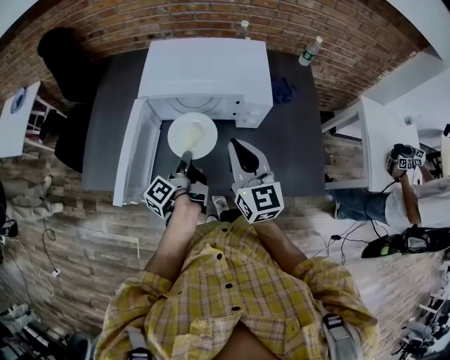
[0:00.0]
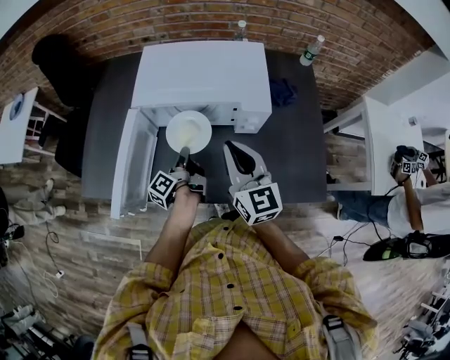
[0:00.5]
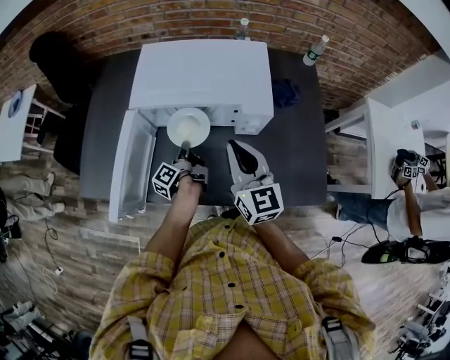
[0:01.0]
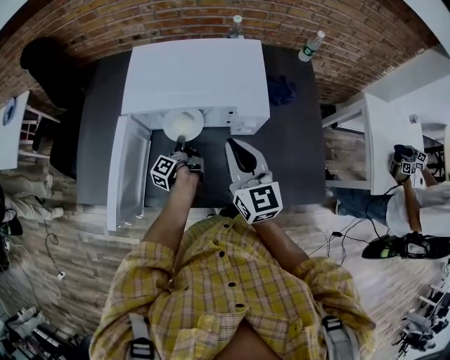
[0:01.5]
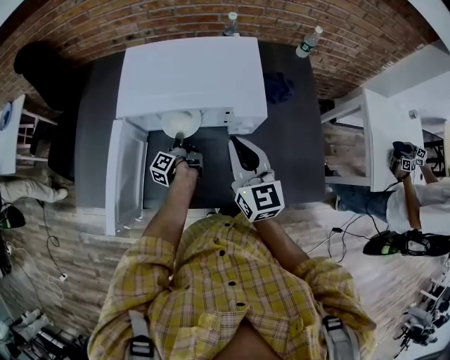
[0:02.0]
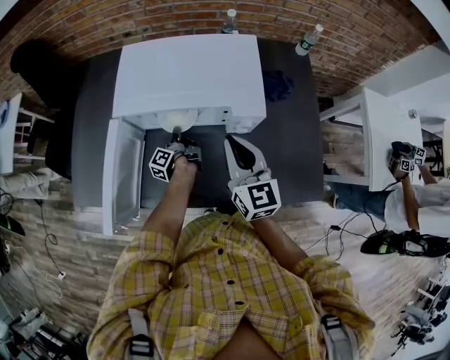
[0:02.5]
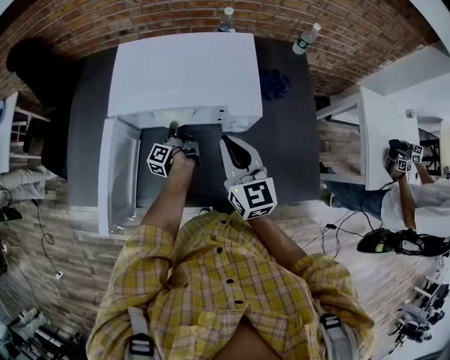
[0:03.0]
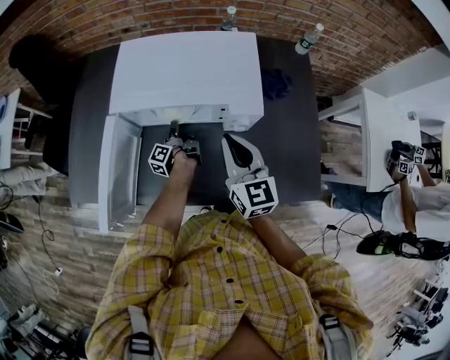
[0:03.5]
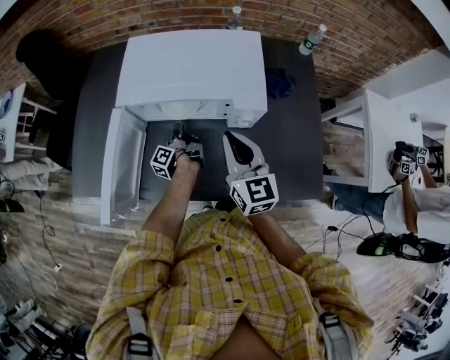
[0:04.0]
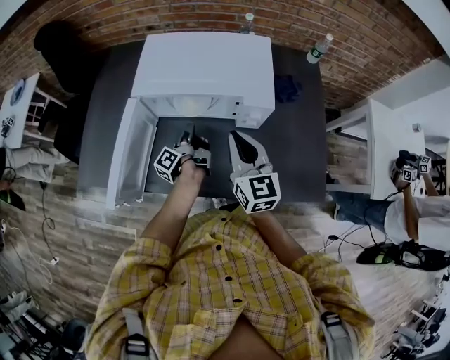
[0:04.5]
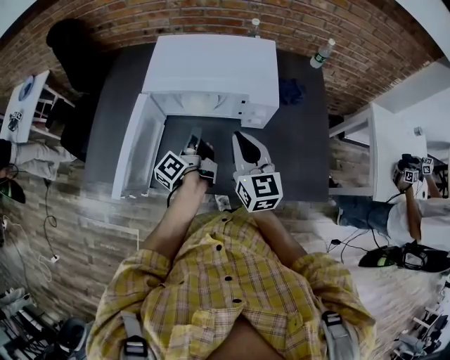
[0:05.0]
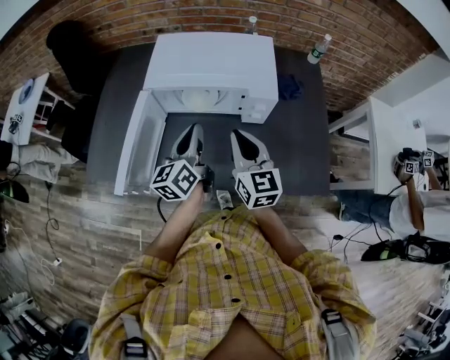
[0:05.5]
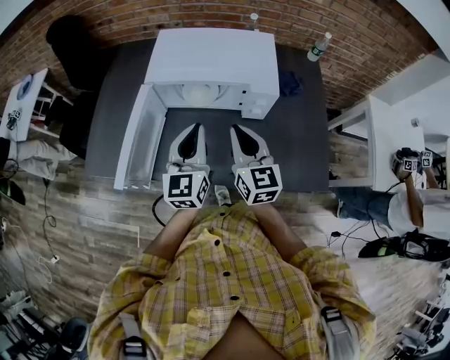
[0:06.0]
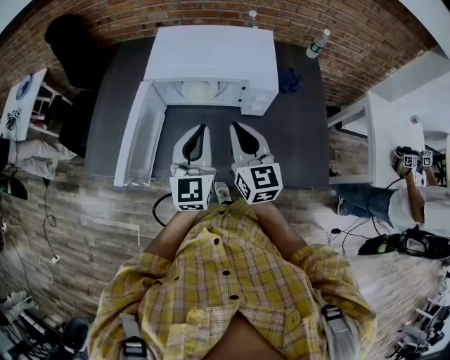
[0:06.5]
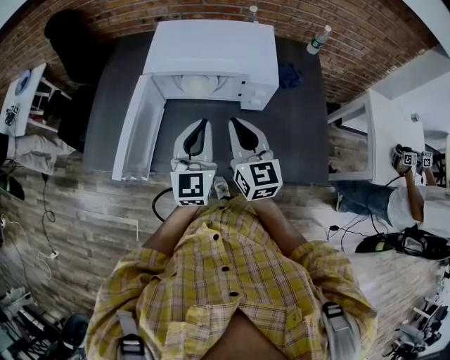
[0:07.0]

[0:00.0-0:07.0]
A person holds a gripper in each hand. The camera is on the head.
0:00.0 to 0:02.0: The right gripper moves some 10 cm.
0:03.5 to 0:05.0: The right gripper moves some 5 cm.

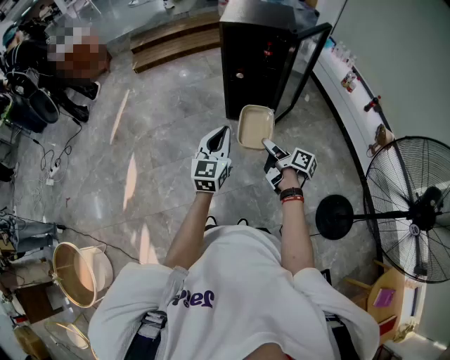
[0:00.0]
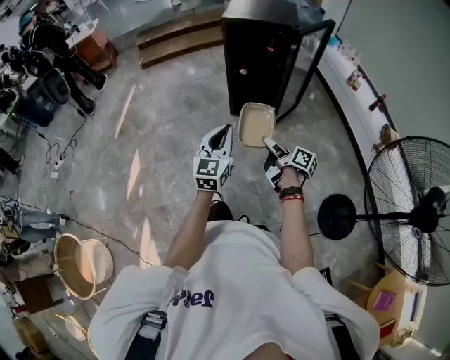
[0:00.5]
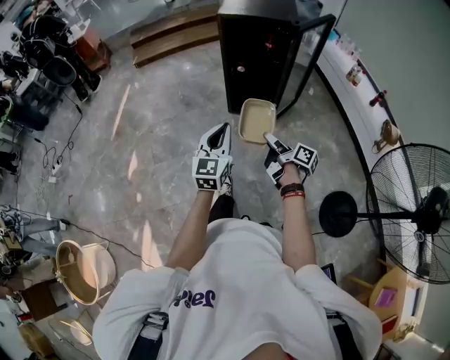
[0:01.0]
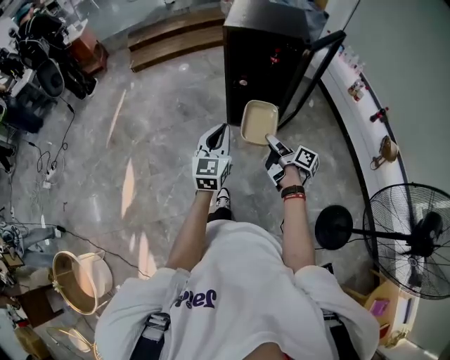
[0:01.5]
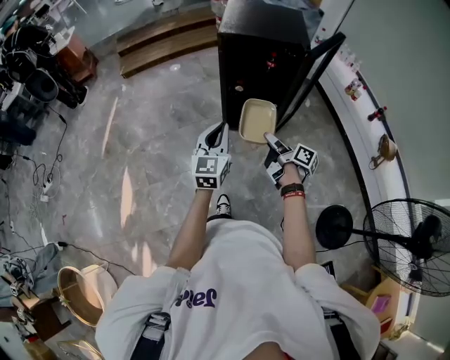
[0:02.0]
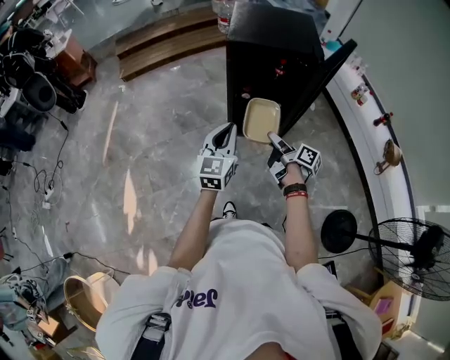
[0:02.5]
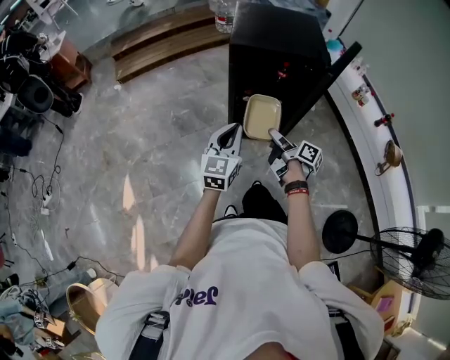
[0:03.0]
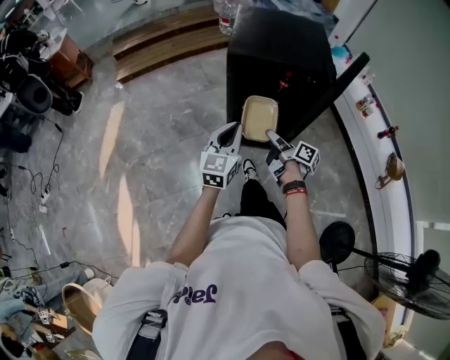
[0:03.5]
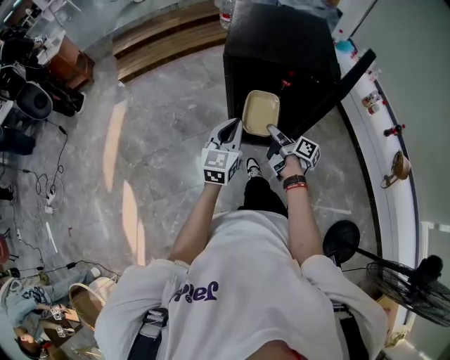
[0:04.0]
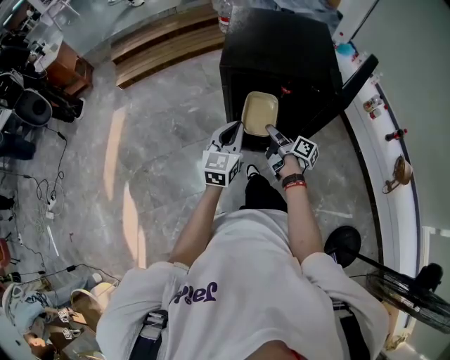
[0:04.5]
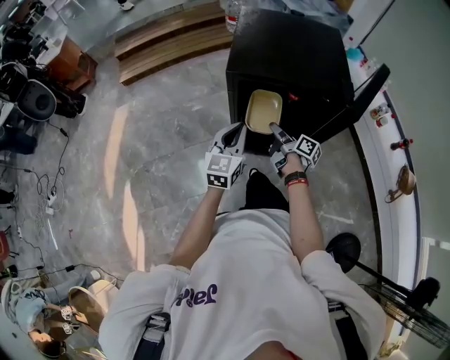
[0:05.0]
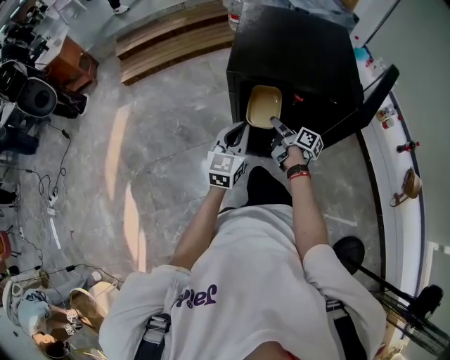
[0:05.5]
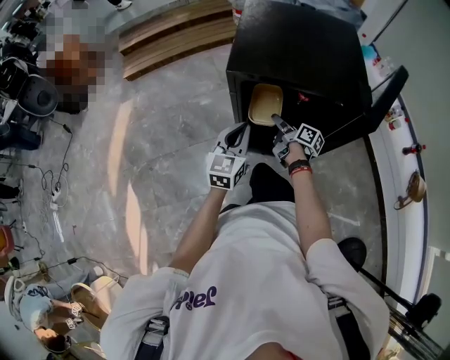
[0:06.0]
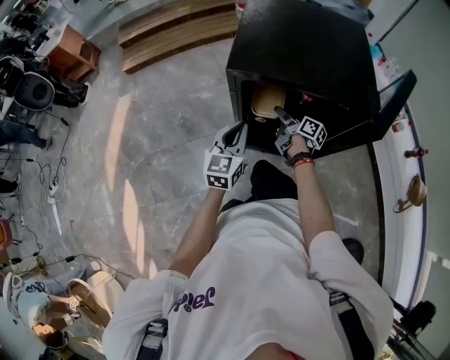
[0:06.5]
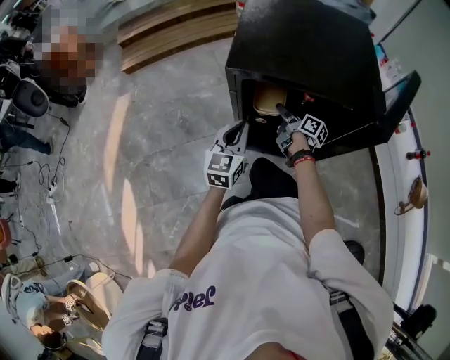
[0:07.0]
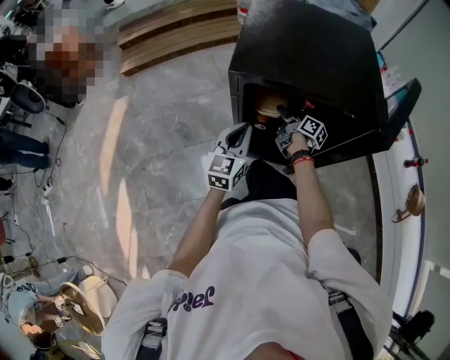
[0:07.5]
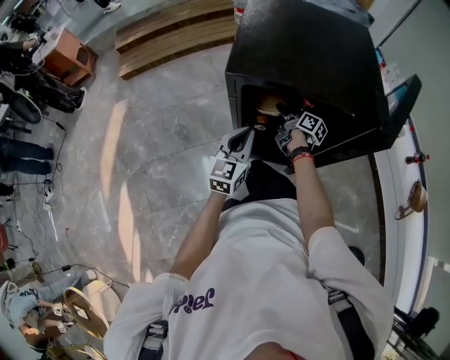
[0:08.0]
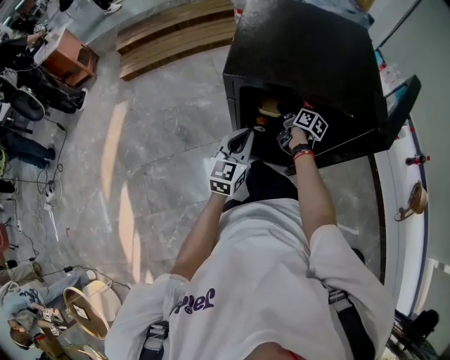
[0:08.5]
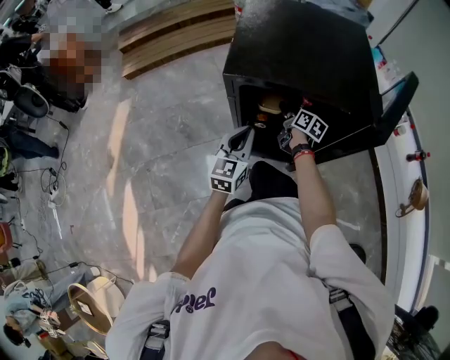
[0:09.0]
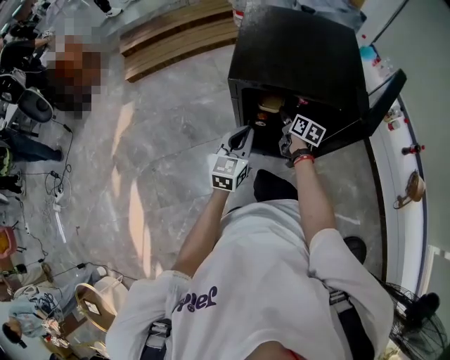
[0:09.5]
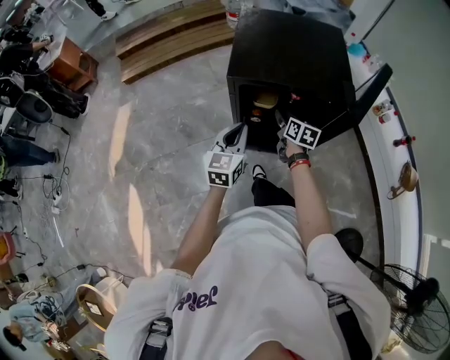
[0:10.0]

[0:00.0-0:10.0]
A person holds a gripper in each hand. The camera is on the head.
0:00.0 to 0:02.0: The two grippers go some 25 cm forward.
0:02.0 to 0:04.0: Both grippers travel together forward, approximately 30 cm.
0:04.0 to 0:06.0: The two grippers go roughly 20 cm forward and downward.
0:06.0 to 0:08.0: The left gripper moves downward, some 5 cm, while the right gripper shifts approximately 10 cm forward and downward.
0:08.0 to 0:10.0: Both grippers move upward and backward, approximately 20 cm. The right gripper turns by about 40 degrees.

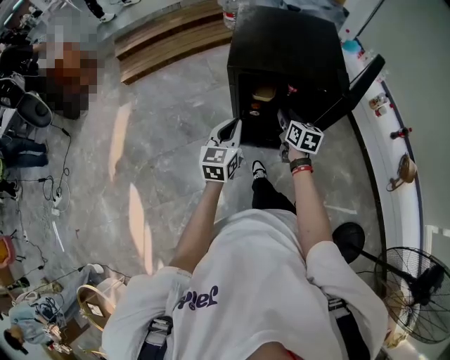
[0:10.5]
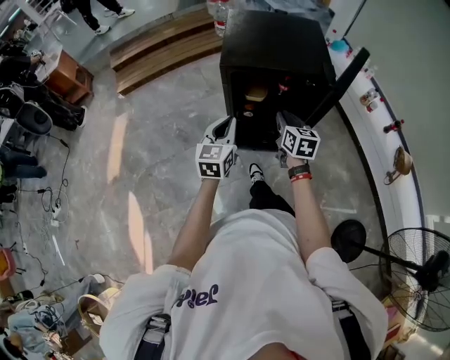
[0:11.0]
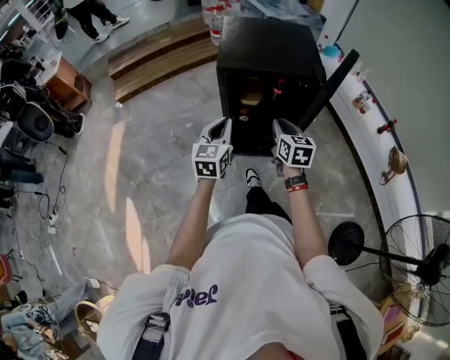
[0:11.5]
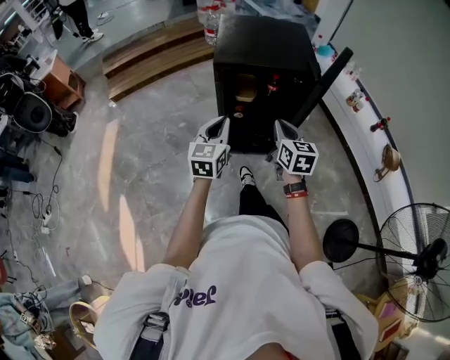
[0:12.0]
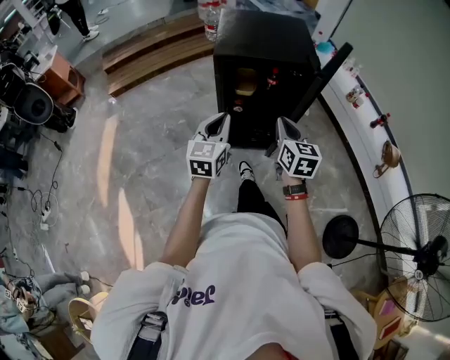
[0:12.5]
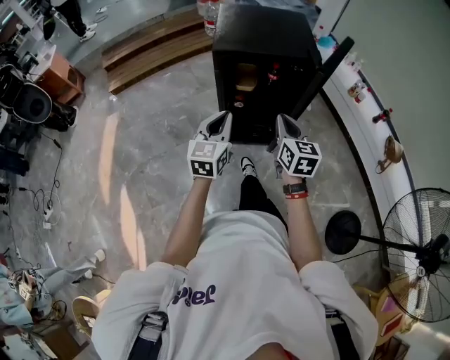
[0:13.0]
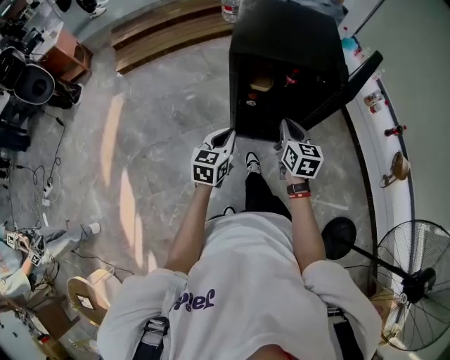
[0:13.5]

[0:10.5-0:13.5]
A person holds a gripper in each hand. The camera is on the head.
0:10.5 to 0:12.0: The left gripper is displaced backward by some 10 cm, while the right gripper heads backward and upward, covering approximately 20 cm, and closes up.
0:12.0 to 0:13.5: The left gripper heads downward, covering some 10 cm. The right gripper moves forward, approximately 5 cm.

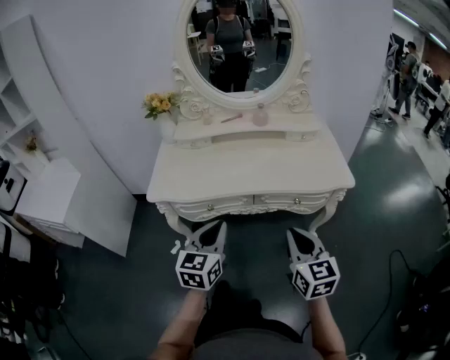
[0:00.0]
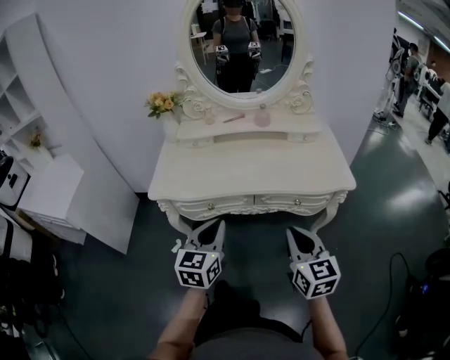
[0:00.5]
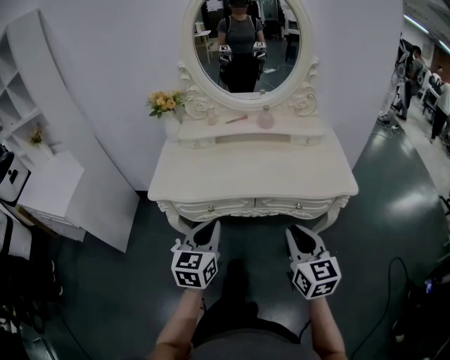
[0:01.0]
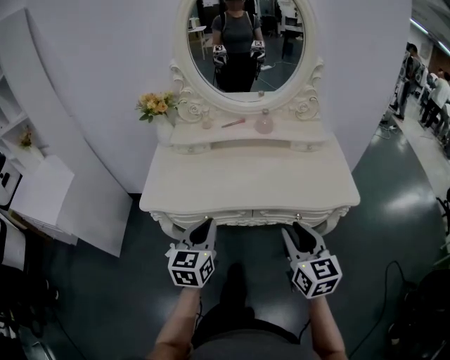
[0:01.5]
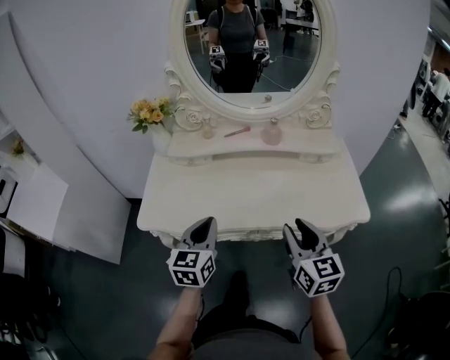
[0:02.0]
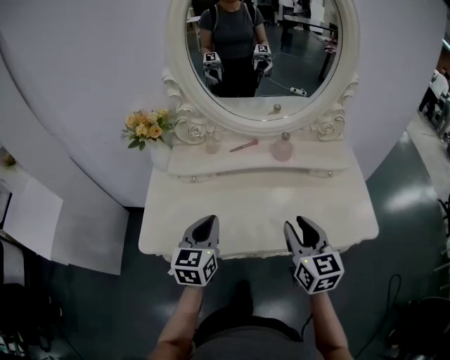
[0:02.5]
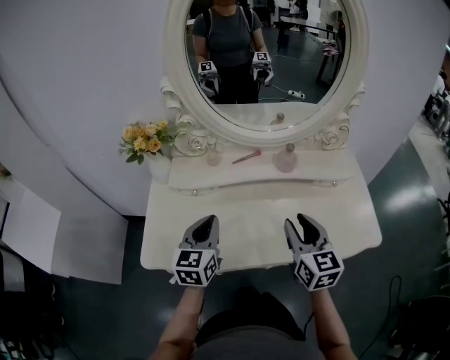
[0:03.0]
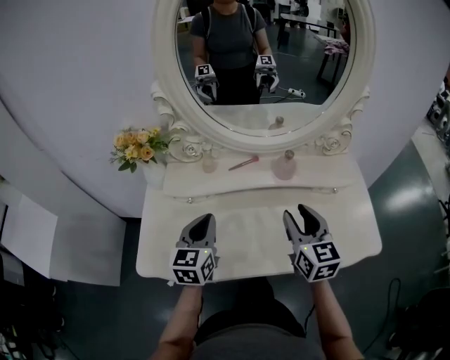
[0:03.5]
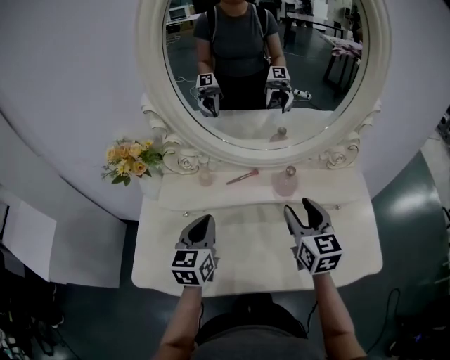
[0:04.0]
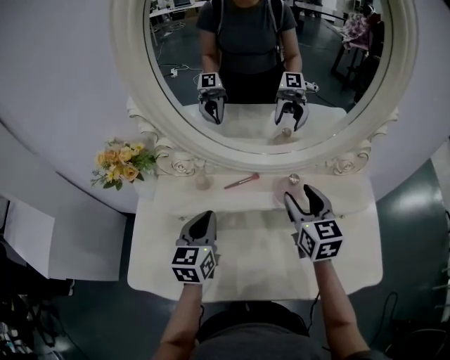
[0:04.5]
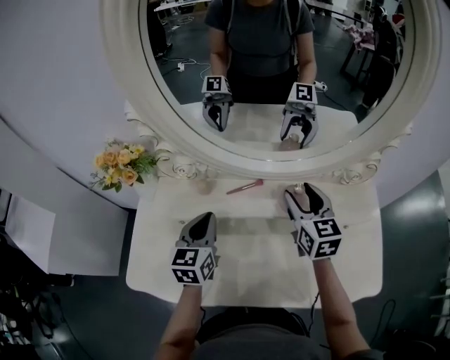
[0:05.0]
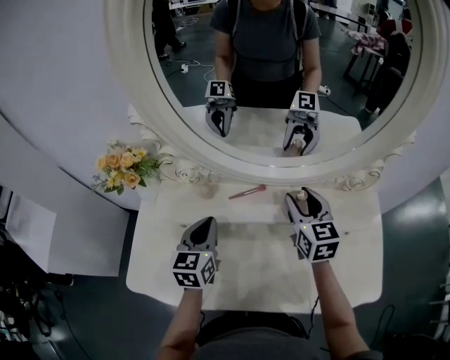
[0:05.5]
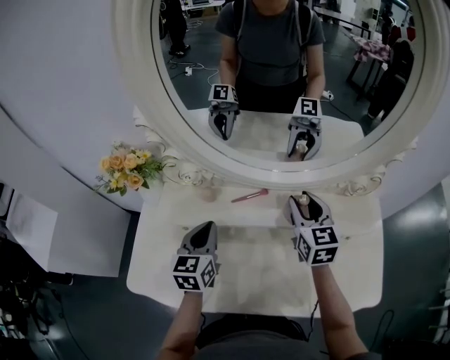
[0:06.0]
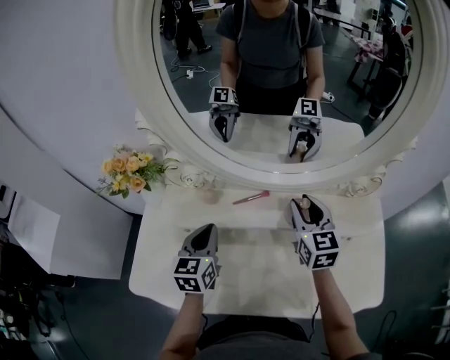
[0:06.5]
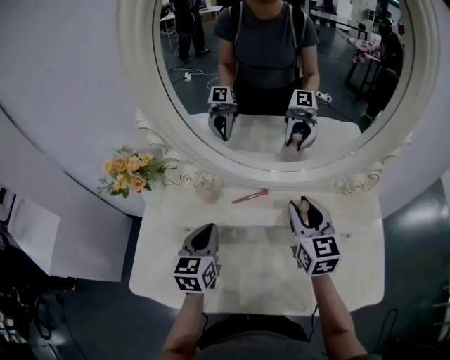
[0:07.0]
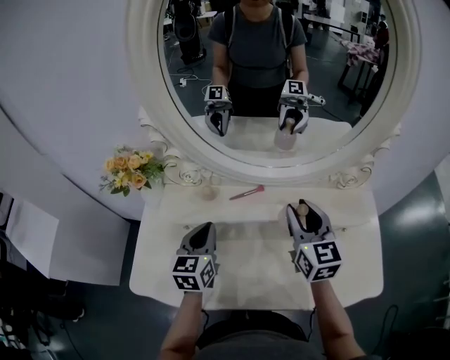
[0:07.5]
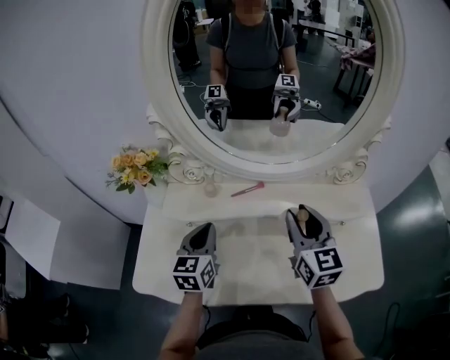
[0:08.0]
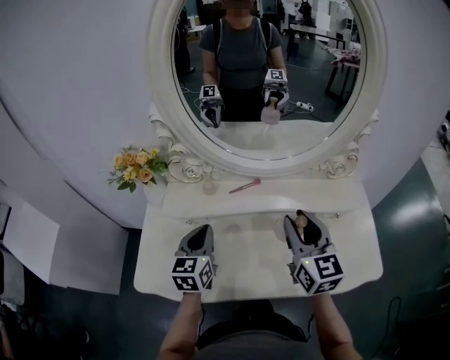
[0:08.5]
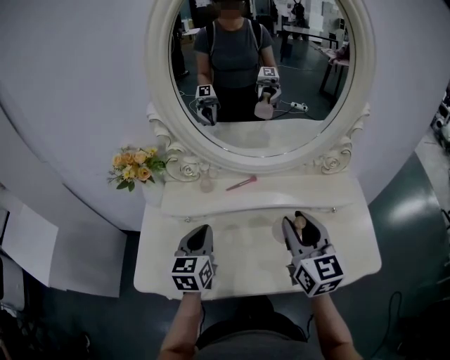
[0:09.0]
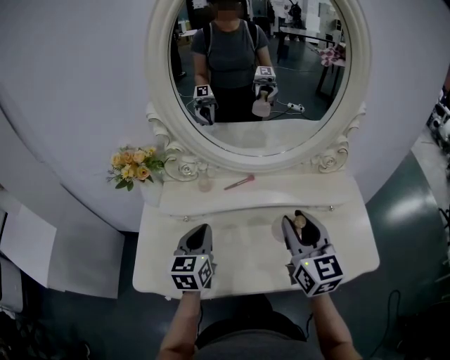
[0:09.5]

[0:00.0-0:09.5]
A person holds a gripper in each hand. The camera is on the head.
0:00.0 to 0:02.0: The two grippers go approximately 20 cm forward. The right gripper opens up.
0:02.0 to 0:04.0: Both grippers move forward, some 25 cm.
0:04.0 to 0:05.5: The left gripper goes approximately 5 cm forward. The right gripper heads forward, covering about 10 cm.
0:05.5 to 0:07.5: The right gripper moves backward and upward, approximately 10 cm.
0:07.5 to 0:09.5: The left gripper shifts about 5 cm backward, while the right gripper is displaced backward by roughly 10 cm.
